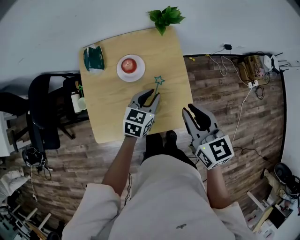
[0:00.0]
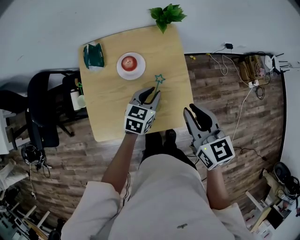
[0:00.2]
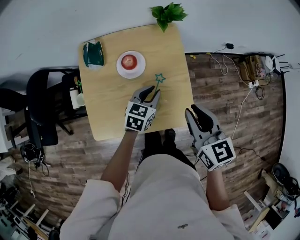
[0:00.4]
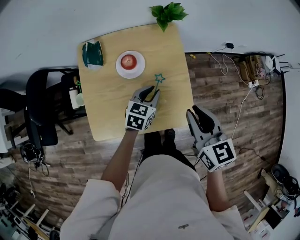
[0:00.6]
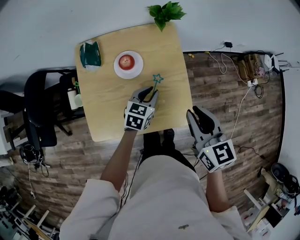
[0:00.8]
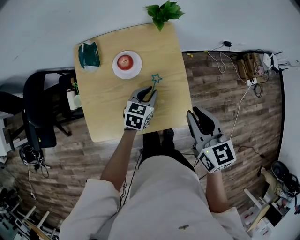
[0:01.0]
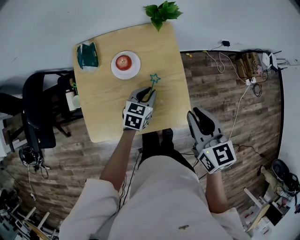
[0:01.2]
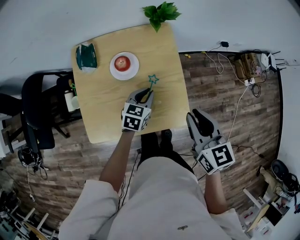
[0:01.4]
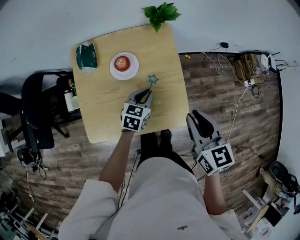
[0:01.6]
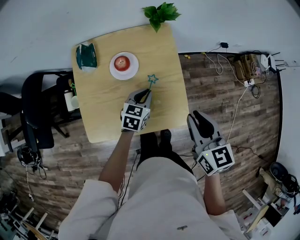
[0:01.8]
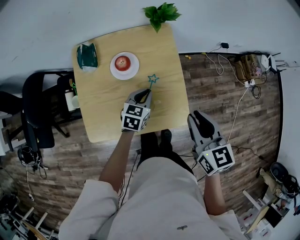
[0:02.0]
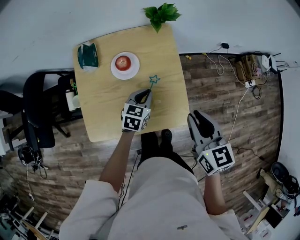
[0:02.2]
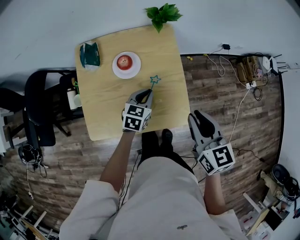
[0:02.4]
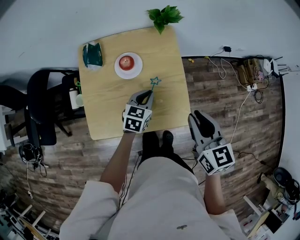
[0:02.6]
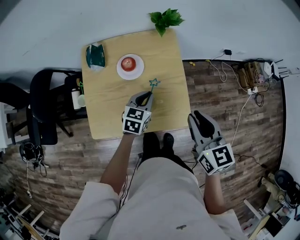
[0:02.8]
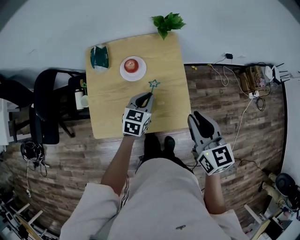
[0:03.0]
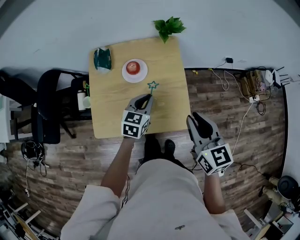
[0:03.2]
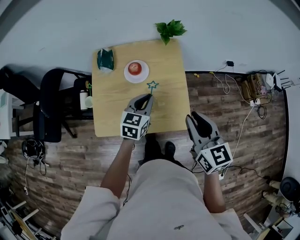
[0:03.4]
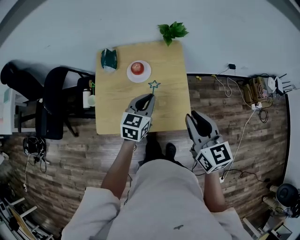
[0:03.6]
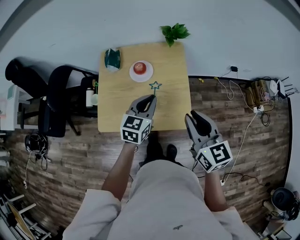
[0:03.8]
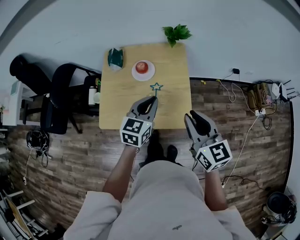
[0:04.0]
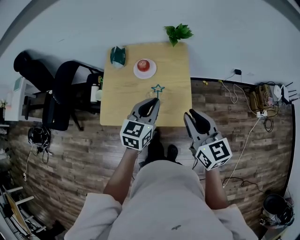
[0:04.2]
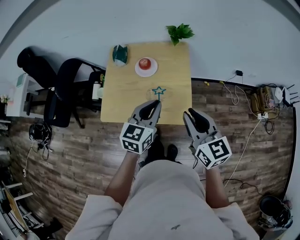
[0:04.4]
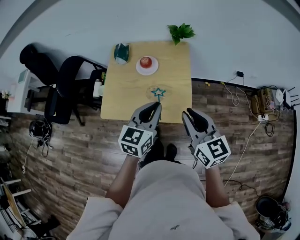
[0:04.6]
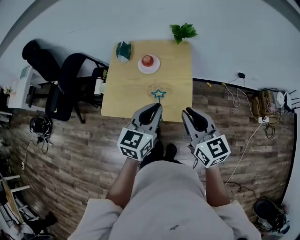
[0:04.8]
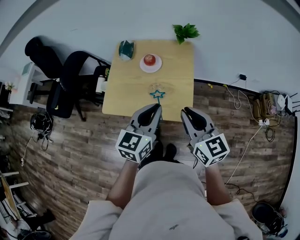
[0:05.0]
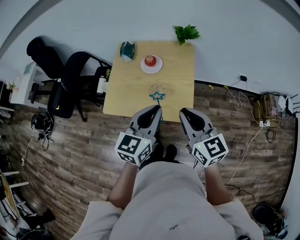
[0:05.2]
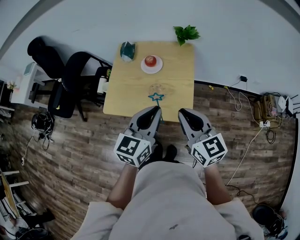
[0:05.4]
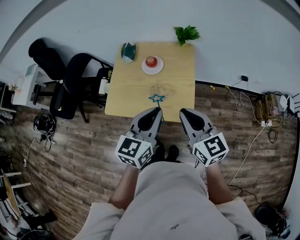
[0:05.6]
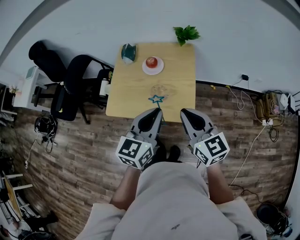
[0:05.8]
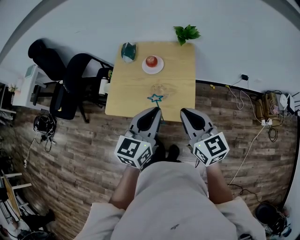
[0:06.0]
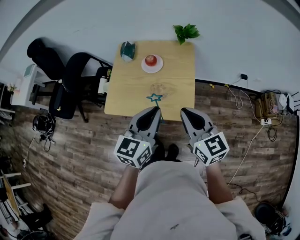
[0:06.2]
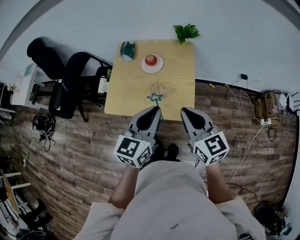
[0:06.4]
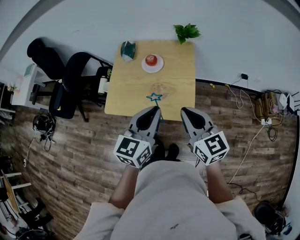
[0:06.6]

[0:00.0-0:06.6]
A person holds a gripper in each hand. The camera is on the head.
0:00.0 to 0:01.6: The left gripper travels downward by approximately 5 cm.
0:01.6 to 0:03.2: The right gripper ends up some 5 cm from where it was, while the left gripper is displaced upward by approximately 10 cm.
0:03.2 to 0:05.0: The right gripper moves backward, roughly 10 cm, and swivels roughly 20 degrees. Meanwhile the left gripper goes about 25 cm backward and upward, and rotates some 20 degrees.
0:05.0 to 0:06.6: The grippers make only small movements.
